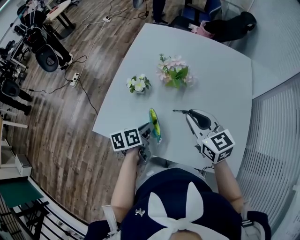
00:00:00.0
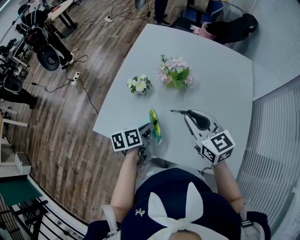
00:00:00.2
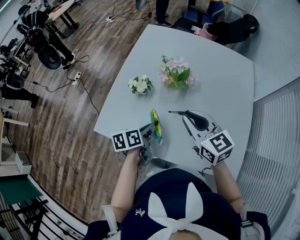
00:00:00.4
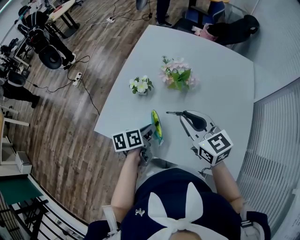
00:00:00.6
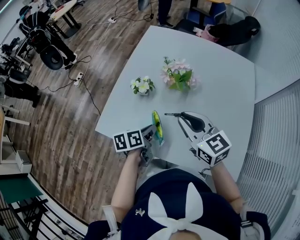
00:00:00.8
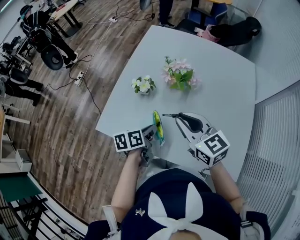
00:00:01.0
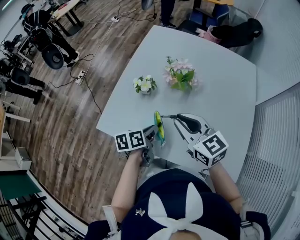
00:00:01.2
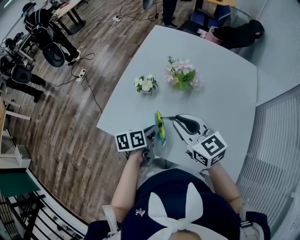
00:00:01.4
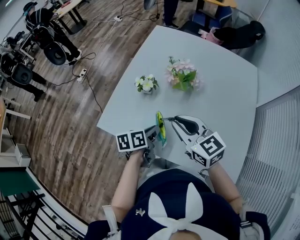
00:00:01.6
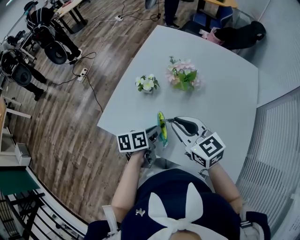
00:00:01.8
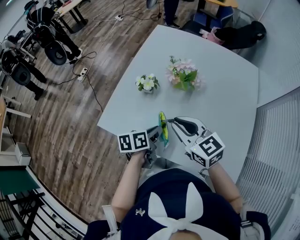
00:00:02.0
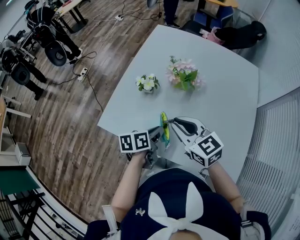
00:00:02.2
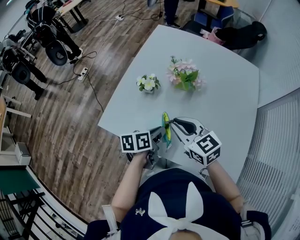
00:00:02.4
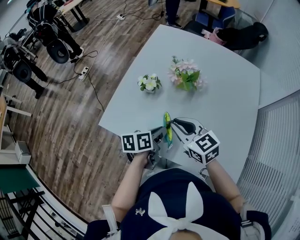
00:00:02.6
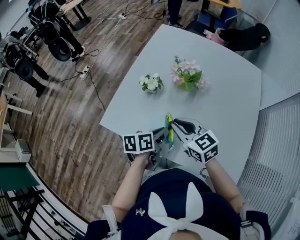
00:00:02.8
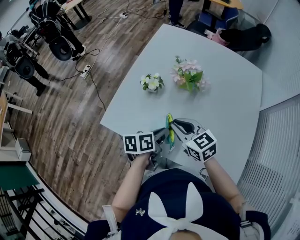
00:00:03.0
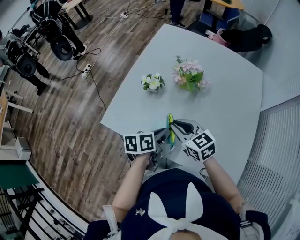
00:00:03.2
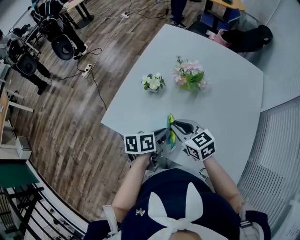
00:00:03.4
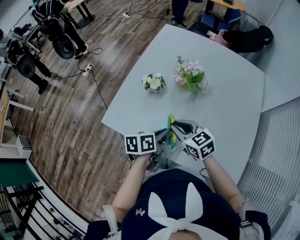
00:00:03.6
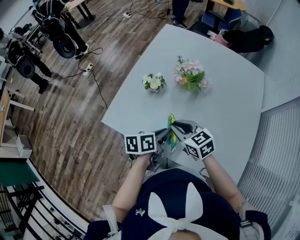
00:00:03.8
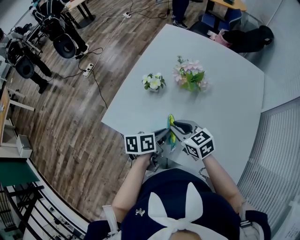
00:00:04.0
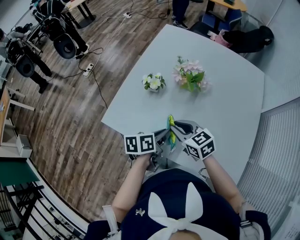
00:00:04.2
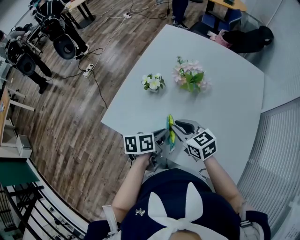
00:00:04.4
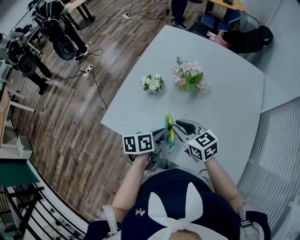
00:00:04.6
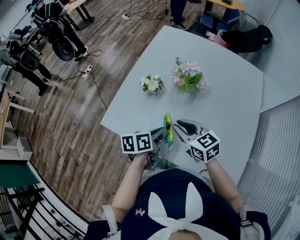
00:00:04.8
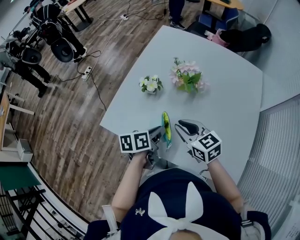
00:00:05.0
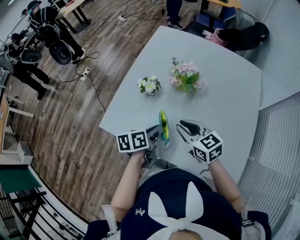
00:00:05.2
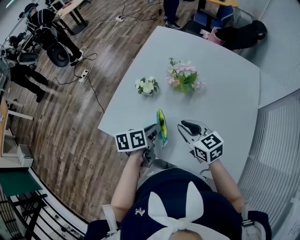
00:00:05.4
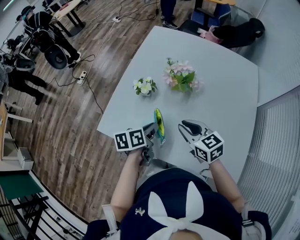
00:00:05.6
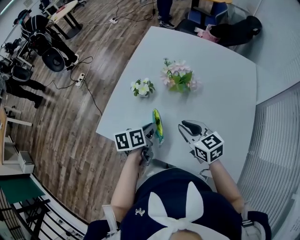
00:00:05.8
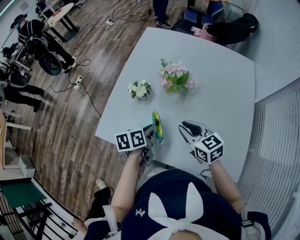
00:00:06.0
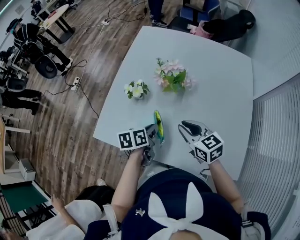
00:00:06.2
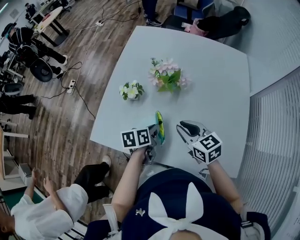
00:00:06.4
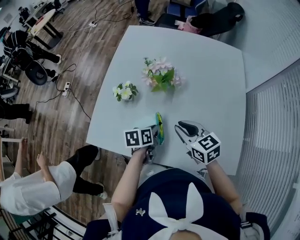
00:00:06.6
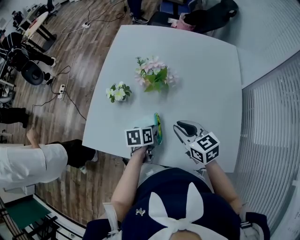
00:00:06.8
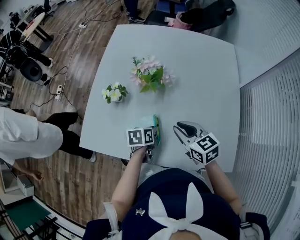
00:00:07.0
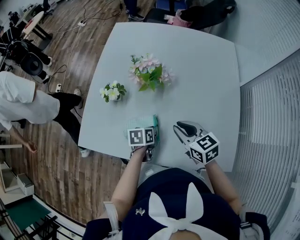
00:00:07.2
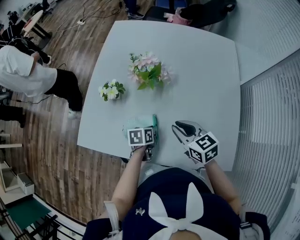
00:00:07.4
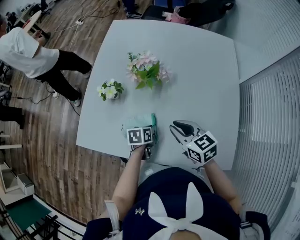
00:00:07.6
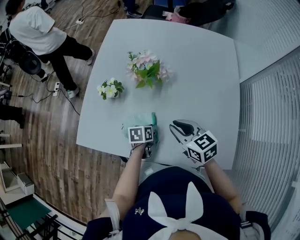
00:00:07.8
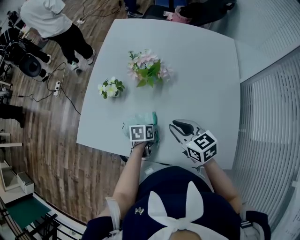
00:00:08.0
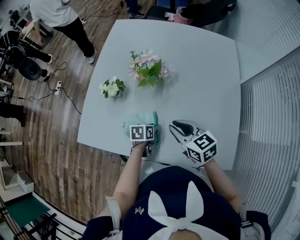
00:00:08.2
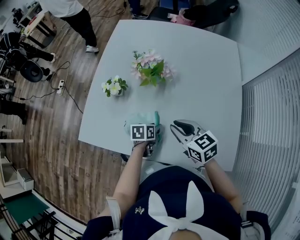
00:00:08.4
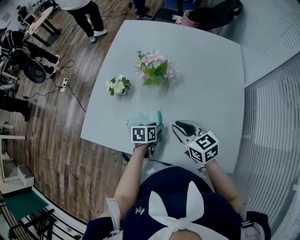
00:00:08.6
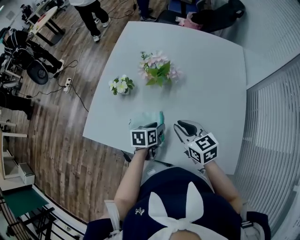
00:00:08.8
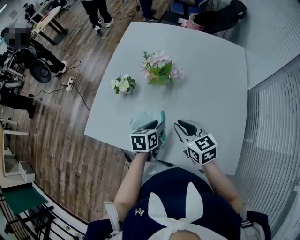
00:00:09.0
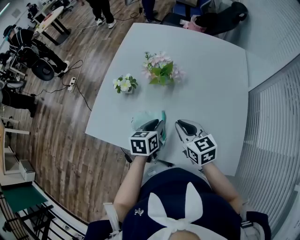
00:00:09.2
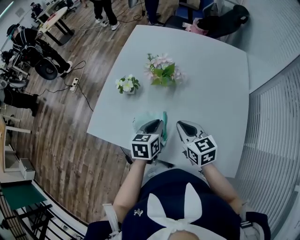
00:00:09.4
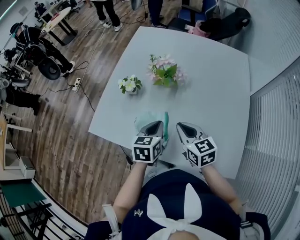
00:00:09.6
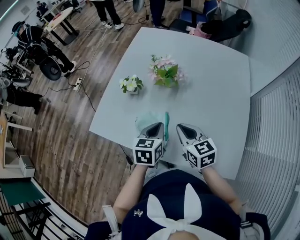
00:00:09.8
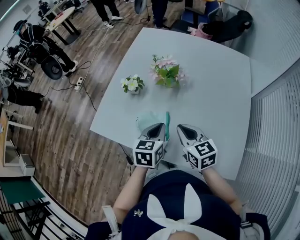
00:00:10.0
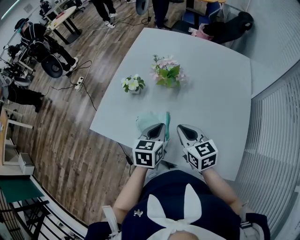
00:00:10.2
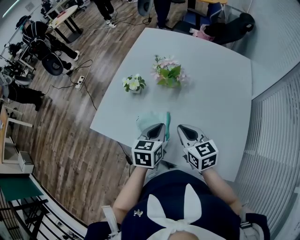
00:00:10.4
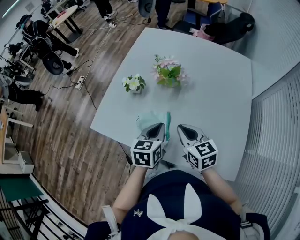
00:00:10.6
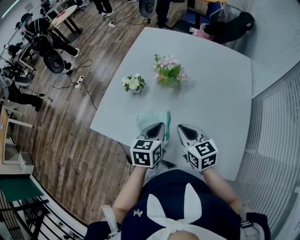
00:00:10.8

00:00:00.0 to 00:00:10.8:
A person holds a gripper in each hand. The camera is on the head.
00:00:00.0 to 00:00:01.6: The right gripper heads to the left, covering about 10 cm.
00:00:01.6 to 00:00:03.0: The right gripper is displaced downward by roughly 5 cm.
00:00:03.0 to 00:00:04.6: The grippers stay close to where they were, moving slightly.
00:00:04.6 to 00:00:06.2: The right gripper is displaced to the right by about 10 cm. Meanwhile the left gripper goes roughly 5 cm forward.
00:00:06.2 to 00:00:07.8: The right gripper heads to the right, covering roughly 5 cm. Meanwhile the left gripper goes some 15 cm downward and to the right.
00:00:07.8 to 00:00:09.2: The left gripper moves upward, about 10 cm, and changes its angle by approximately 20 degrees.
00:00:09.2 to 00:00:10.8: The left gripper heads upward, covering approximately 5 cm.

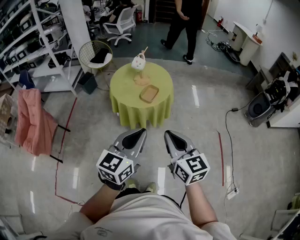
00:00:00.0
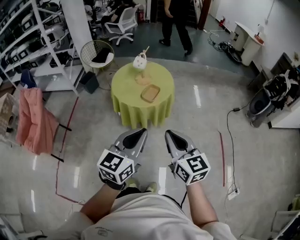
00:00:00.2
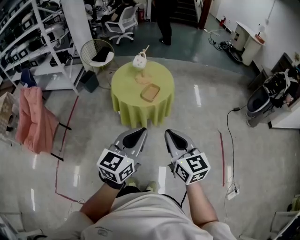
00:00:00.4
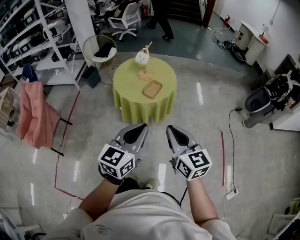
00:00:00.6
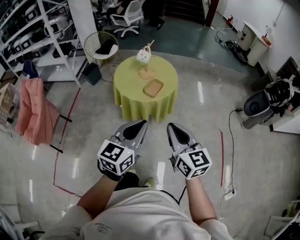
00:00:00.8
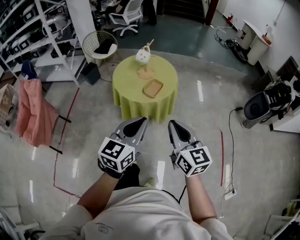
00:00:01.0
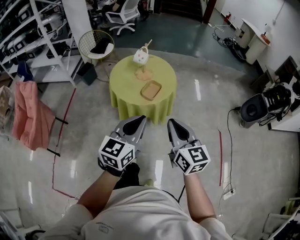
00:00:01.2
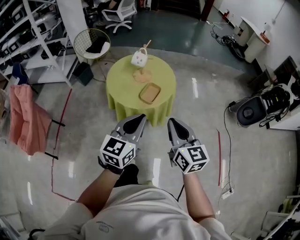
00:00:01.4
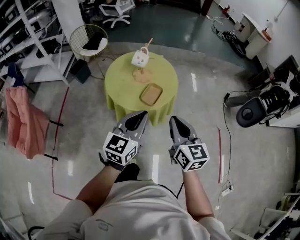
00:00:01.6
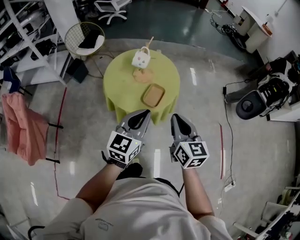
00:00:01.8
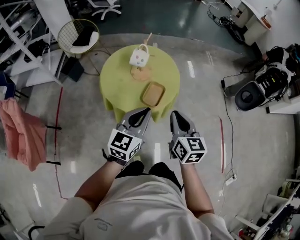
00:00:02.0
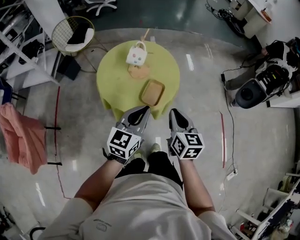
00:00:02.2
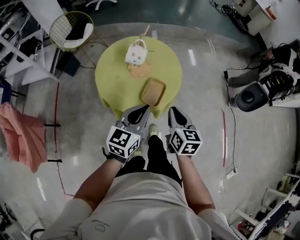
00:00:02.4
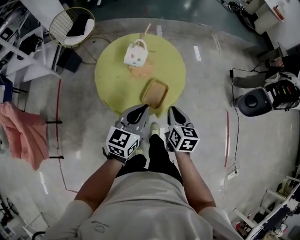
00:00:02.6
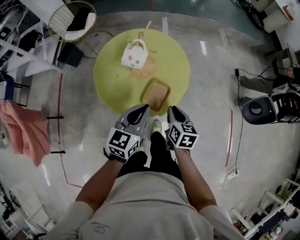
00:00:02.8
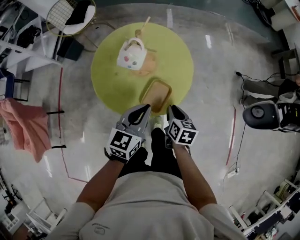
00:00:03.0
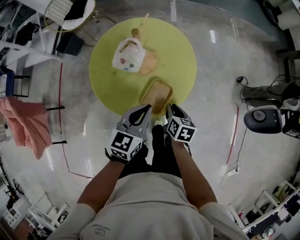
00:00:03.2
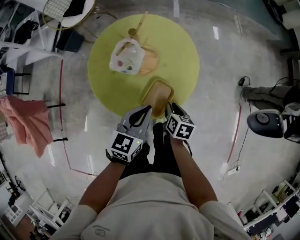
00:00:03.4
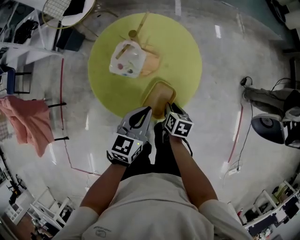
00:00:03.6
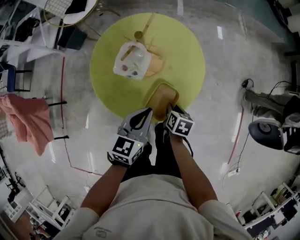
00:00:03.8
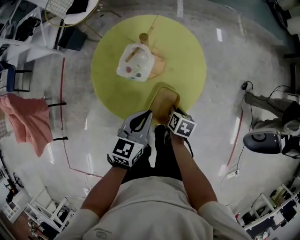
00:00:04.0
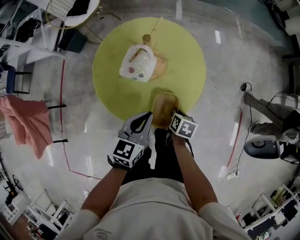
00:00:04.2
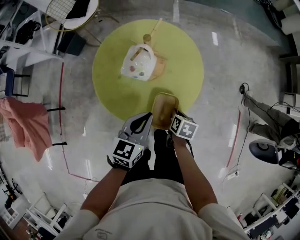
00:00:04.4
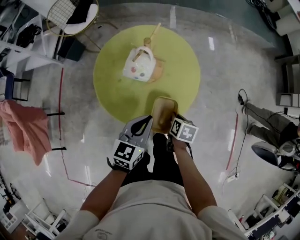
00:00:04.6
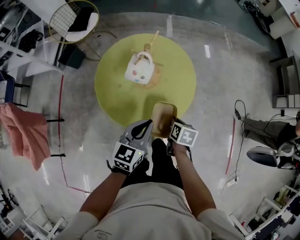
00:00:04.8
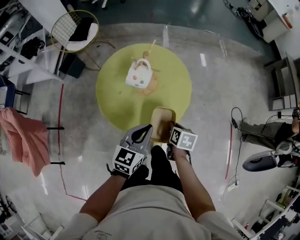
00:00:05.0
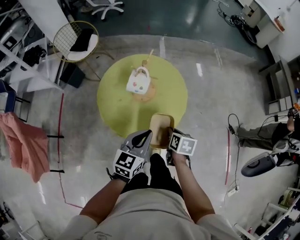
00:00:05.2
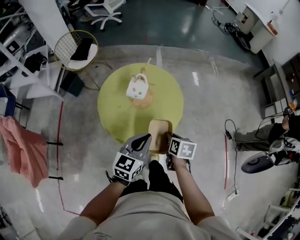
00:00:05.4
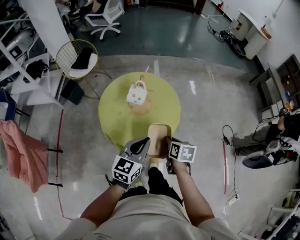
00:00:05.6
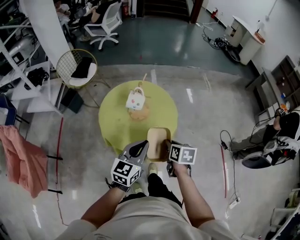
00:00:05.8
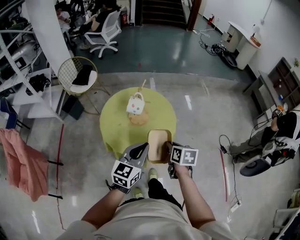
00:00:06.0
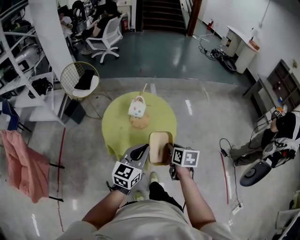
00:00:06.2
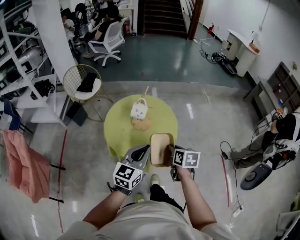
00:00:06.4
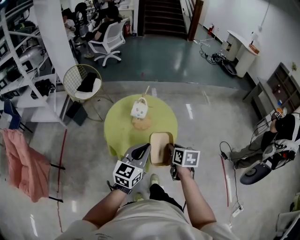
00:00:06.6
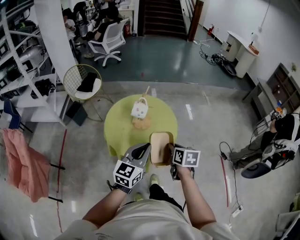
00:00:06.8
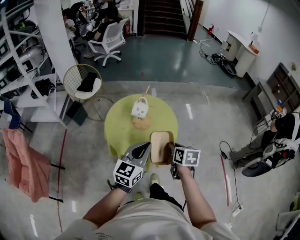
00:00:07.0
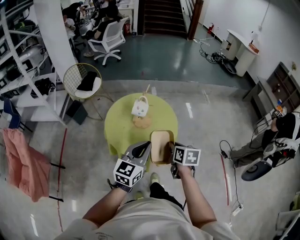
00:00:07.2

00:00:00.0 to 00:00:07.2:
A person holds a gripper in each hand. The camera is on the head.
00:00:00.0 to 00:00:01.4: Both grippers travel together forward, some 15 cm.
00:00:01.4 to 00:00:02.8: The two grippers go roughly 35 cm forward and downward. The right gripper angles its fingers downward, by roughly 30 degrees.
00:00:02.8 to 00:00:04.4: The right gripper is displaced downward by approximately 15 cm, and swivels some 20 degrees, while the left gripper shifts roughly 10 cm downward.
00:00:04.4 to 00:00:05.8: The right gripper goes roughly 20 cm upward; the left gripper is displaced upward and backward by approximately 15 cm.
00:00:05.8 to 00:00:07.2: The two grippers go some 5 cm upward.

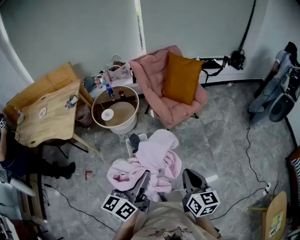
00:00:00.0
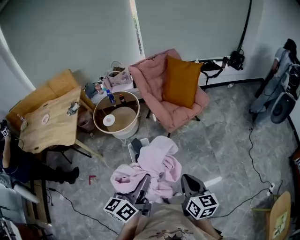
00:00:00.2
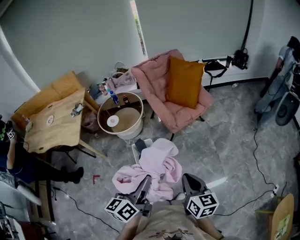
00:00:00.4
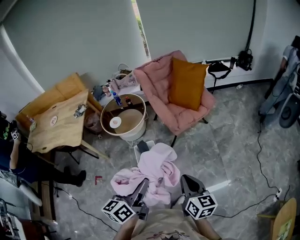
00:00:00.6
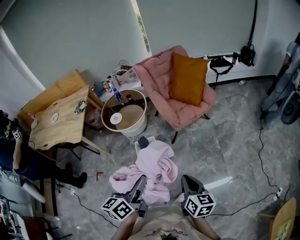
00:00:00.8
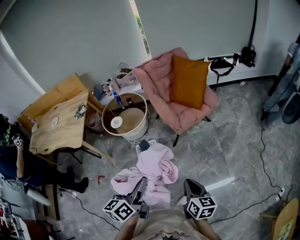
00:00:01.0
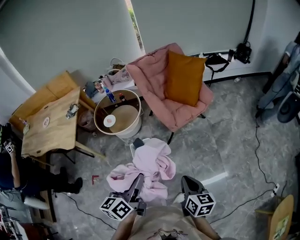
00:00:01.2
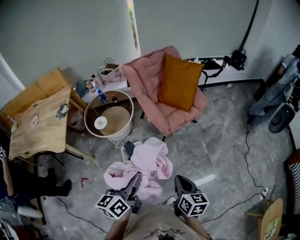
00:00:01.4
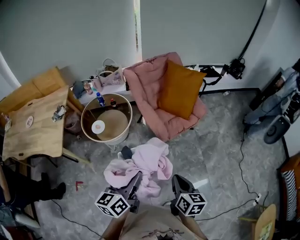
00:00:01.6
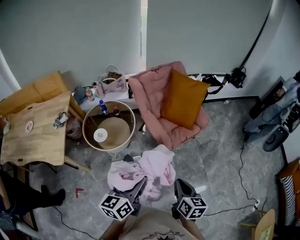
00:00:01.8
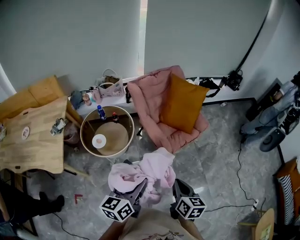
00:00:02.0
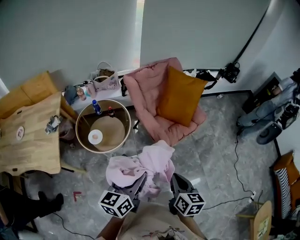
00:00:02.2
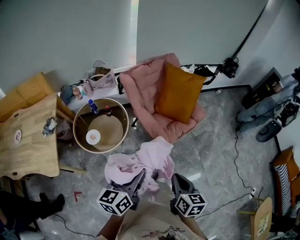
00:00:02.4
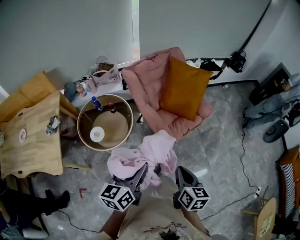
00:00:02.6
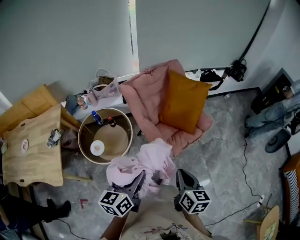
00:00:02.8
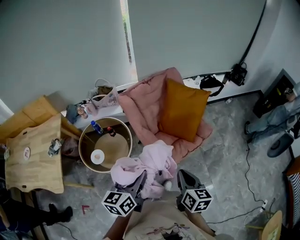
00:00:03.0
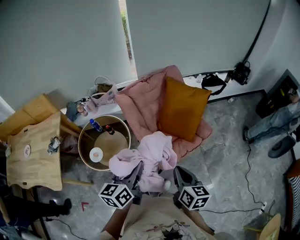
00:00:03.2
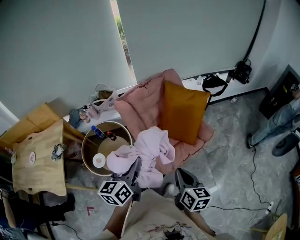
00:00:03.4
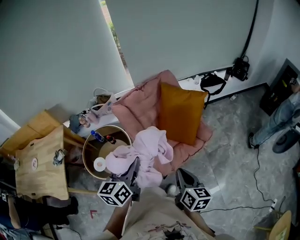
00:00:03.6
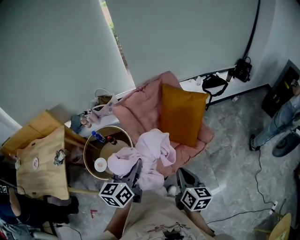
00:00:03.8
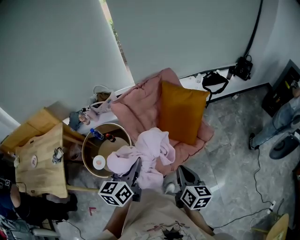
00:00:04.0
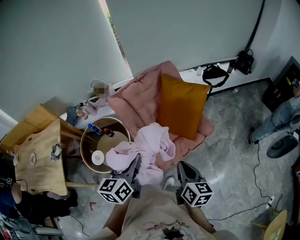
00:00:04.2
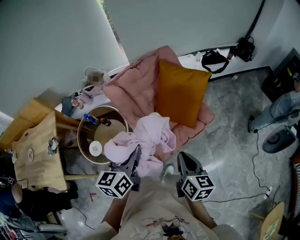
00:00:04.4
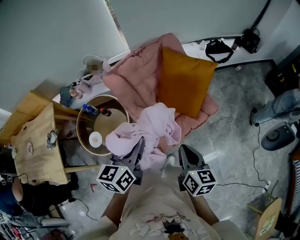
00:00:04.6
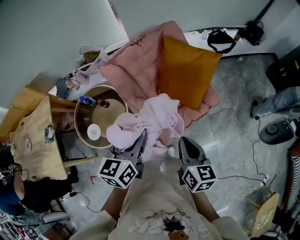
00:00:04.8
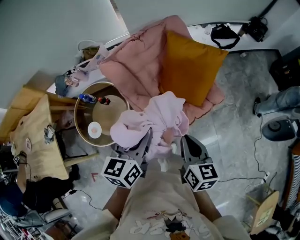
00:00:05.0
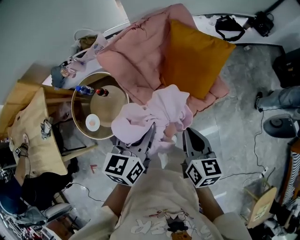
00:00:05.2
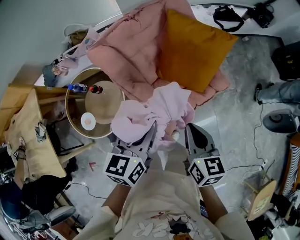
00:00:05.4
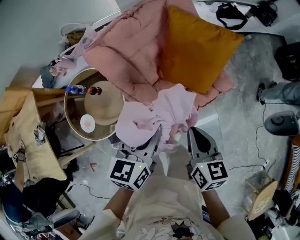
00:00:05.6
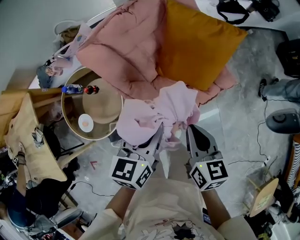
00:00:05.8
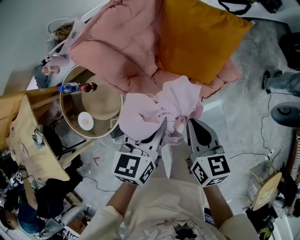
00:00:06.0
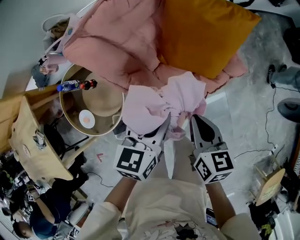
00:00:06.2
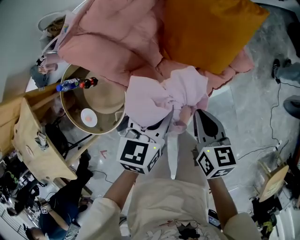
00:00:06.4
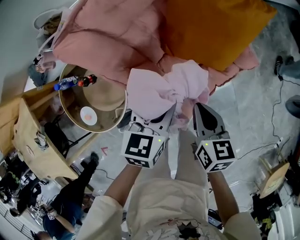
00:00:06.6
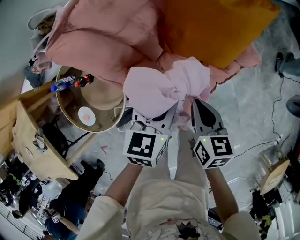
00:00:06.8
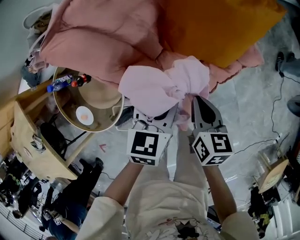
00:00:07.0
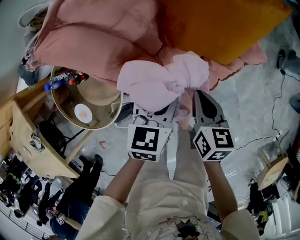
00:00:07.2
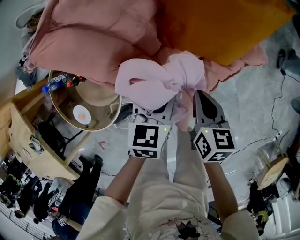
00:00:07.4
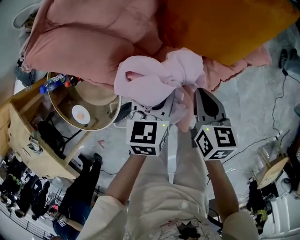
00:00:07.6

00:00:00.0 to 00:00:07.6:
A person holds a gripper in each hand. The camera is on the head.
00:00:00.0 to 00:00:01.6: The grippers both shift forward by roughly 20 cm.
00:00:01.6 to 00:00:03.0: The two grippers go roughly 25 cm forward.
00:00:03.0 to 00:00:04.6: Both grippers move forward and to the right, some 15 cm.
00:00:04.6 to 00:00:06.0: Both grippers move downward and forward, roughly 20 cm.
00:00:06.0 to 00:00:07.6: The two grippers go roughly 20 cm downward.
